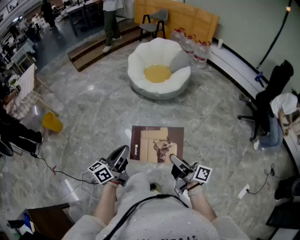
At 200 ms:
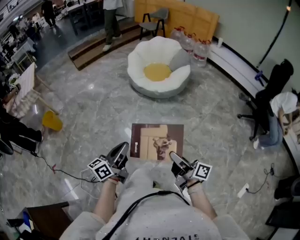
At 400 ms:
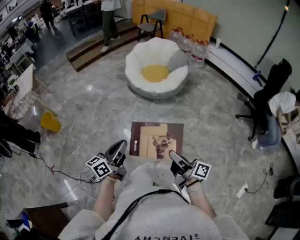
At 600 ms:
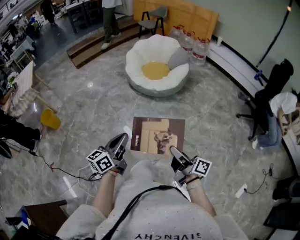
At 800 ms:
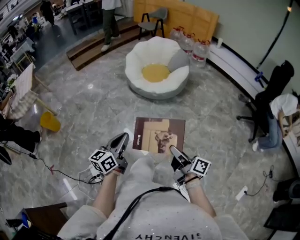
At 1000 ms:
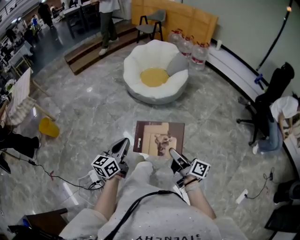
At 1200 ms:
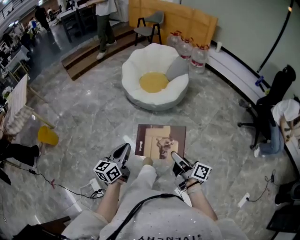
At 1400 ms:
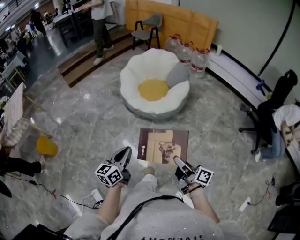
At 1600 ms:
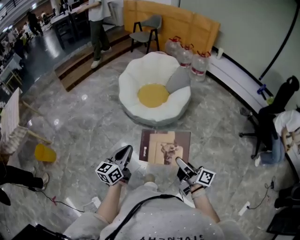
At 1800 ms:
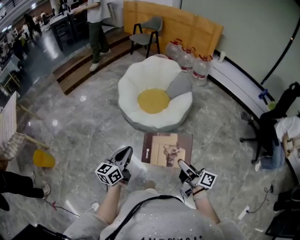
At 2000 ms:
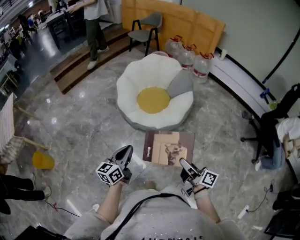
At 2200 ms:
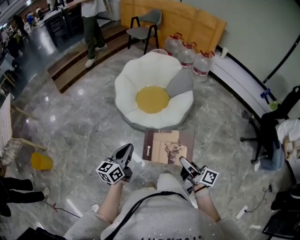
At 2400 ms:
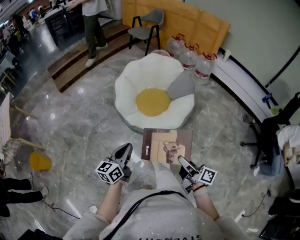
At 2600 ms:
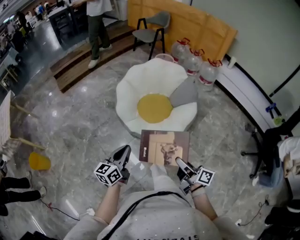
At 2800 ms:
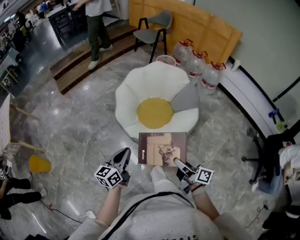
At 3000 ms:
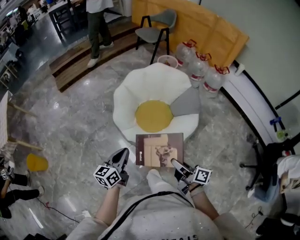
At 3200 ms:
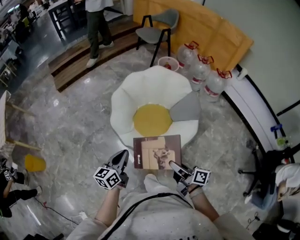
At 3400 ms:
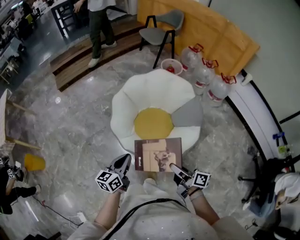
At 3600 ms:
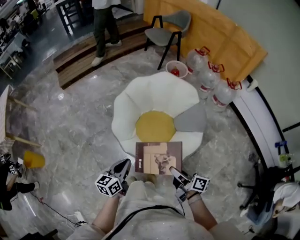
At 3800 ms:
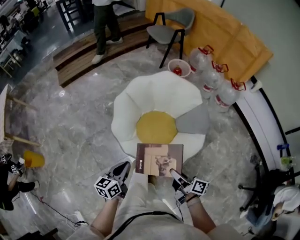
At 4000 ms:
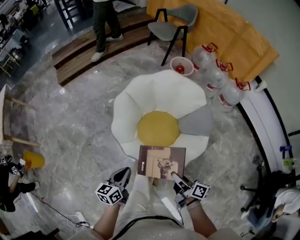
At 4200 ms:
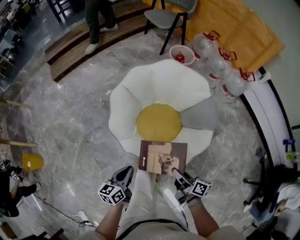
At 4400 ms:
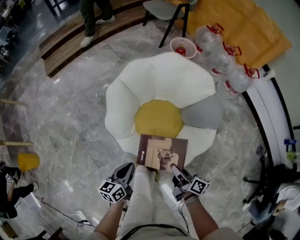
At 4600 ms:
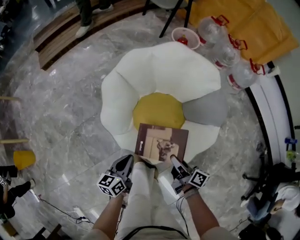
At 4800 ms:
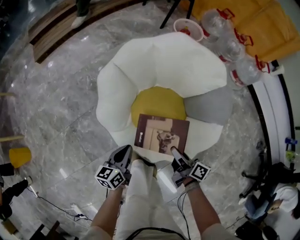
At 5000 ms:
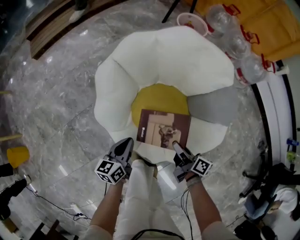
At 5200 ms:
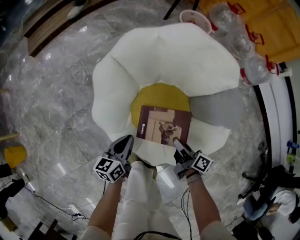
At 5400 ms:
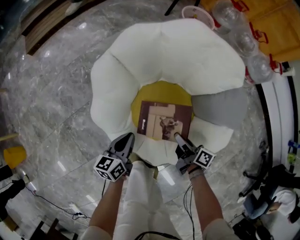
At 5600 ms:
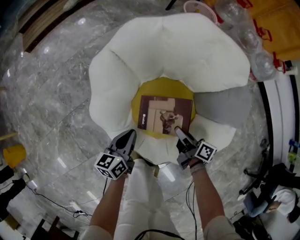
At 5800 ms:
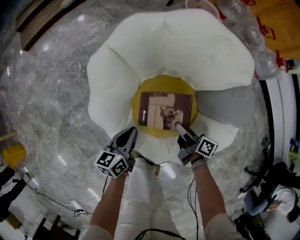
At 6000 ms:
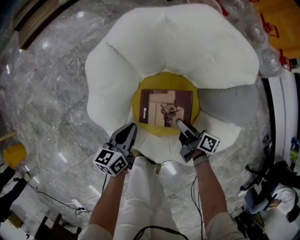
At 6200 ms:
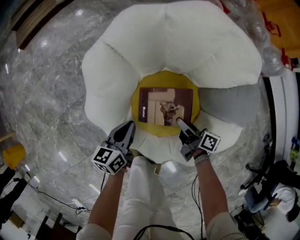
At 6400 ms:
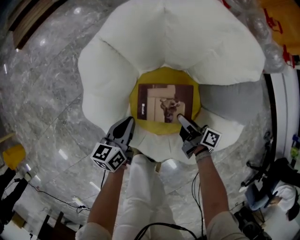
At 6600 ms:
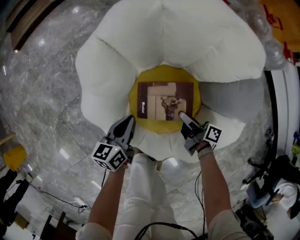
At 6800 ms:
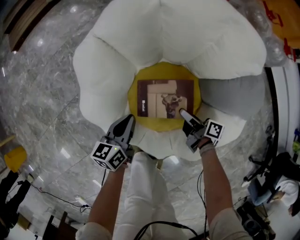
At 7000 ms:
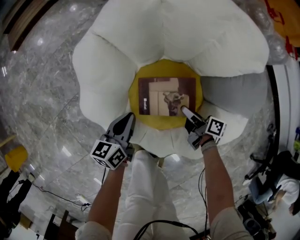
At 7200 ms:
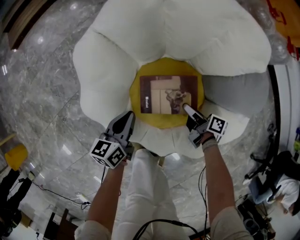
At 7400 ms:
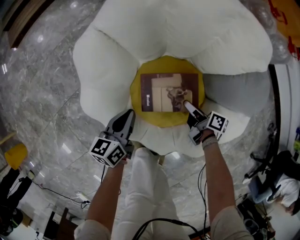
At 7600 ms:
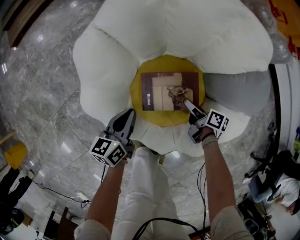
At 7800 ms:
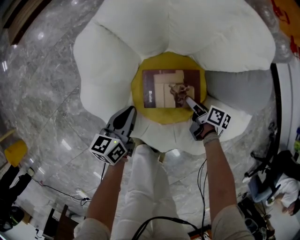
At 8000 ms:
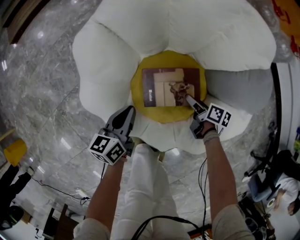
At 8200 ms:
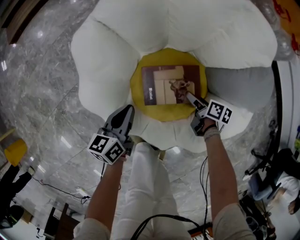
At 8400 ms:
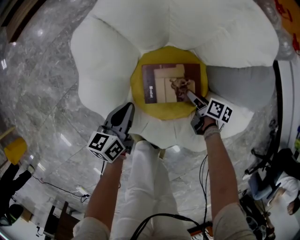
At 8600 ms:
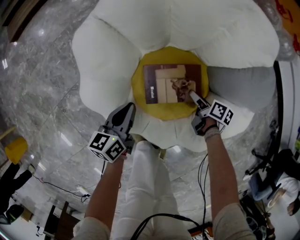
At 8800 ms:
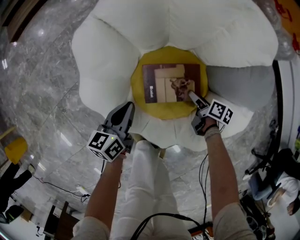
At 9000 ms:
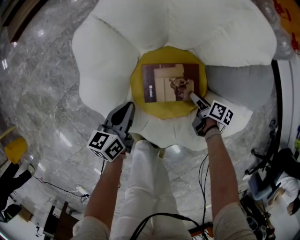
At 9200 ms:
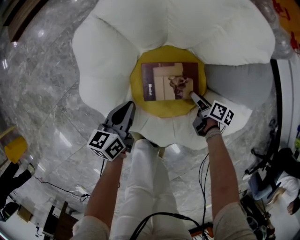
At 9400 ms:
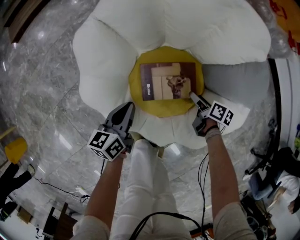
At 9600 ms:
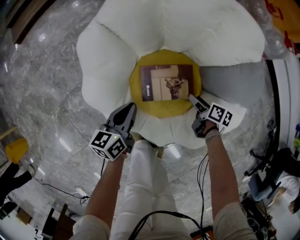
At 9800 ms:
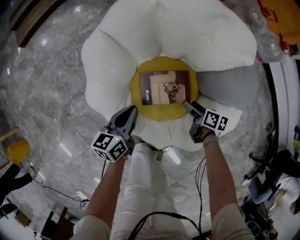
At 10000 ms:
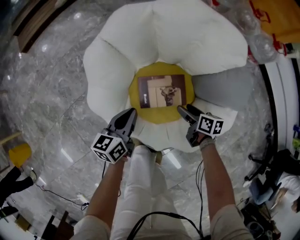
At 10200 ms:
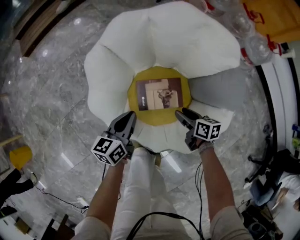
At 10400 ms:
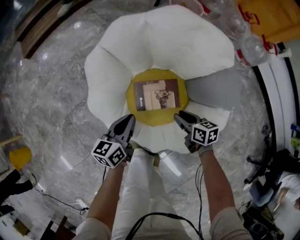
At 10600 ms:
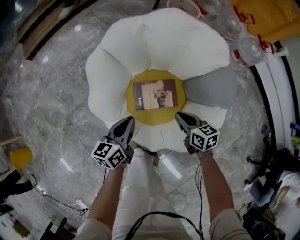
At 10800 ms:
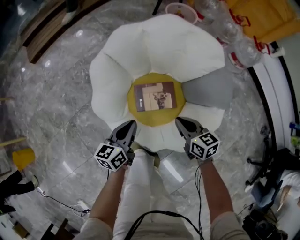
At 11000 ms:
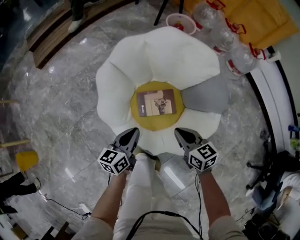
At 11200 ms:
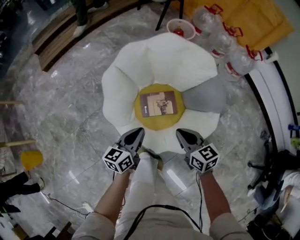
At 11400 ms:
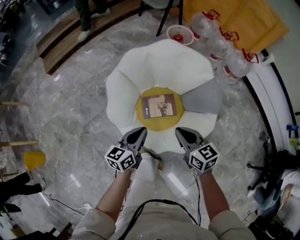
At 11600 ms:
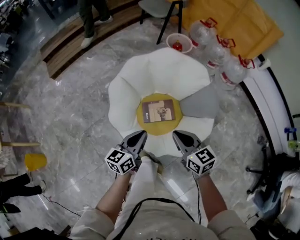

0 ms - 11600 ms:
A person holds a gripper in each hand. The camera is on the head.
0 ms - 1400 ms: The grippers both shift forward by some 25 cm.
1400 ms - 2800 ms: The two grippers go about 35 cm forward.
2800 ms - 4400 ms: The left gripper goes roughly 25 cm downward and forward. The right gripper heads forward and downward, covering about 30 cm.
4400 ms - 5800 ms: Both grippers travel together downward and forward, about 25 cm.
5800 ms - 7200 ms: The right gripper is displaced downward by some 10 cm. The left gripper changes place by some 5 cm.
7200 ms - 8800 ms: The right gripper ends up some 5 cm from where it was, rotates about 20 degrees, and opens.
8800 ms - 10200 ms: Both grippers move upward, roughly 10 cm. The right gripper swivels about 30 degrees.
10200 ms - 11600 ms: The right gripper shifts some 30 cm upward, rotates some 40 degrees, and closes its fingers. Meanwhile the left gripper shifts roughly 20 cm upward and backward.

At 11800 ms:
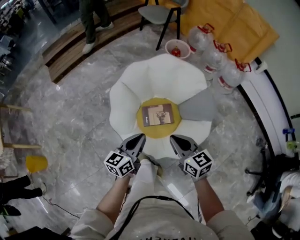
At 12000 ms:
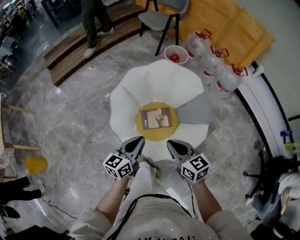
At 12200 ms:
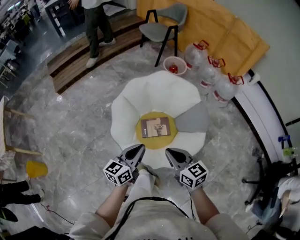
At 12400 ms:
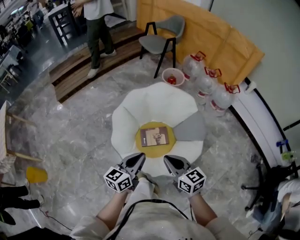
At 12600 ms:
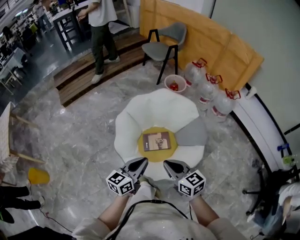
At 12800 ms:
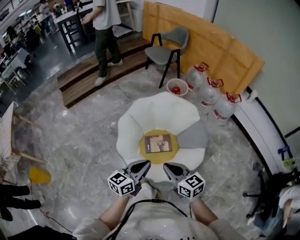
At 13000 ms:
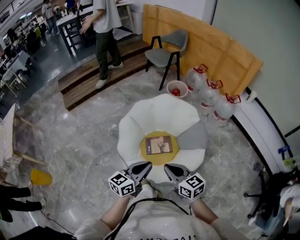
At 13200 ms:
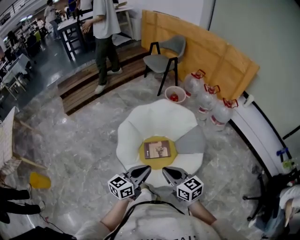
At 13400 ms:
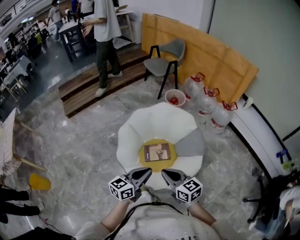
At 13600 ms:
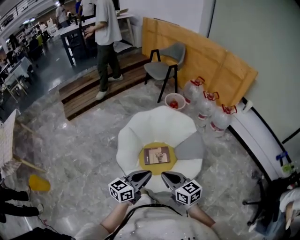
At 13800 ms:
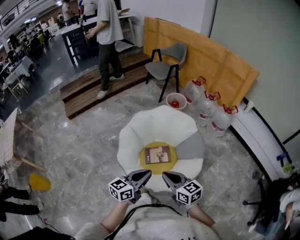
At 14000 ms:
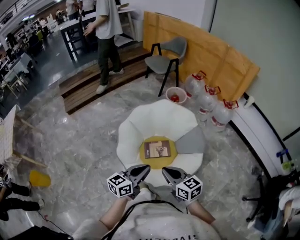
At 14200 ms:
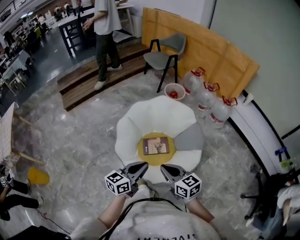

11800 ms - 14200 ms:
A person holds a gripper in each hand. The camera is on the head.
11800 ms - 13000 ms: Both grippers move upward and backward, about 10 cm.
13000 ms - 14200 ms: Both grippers stay put.

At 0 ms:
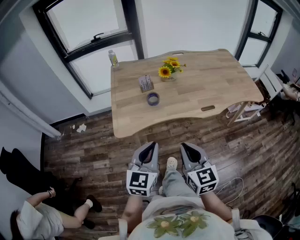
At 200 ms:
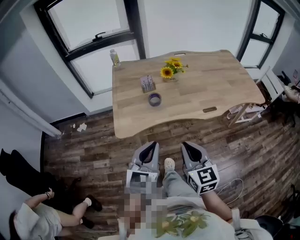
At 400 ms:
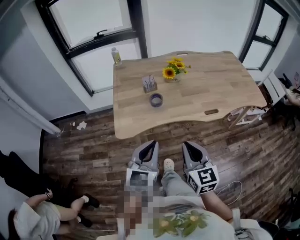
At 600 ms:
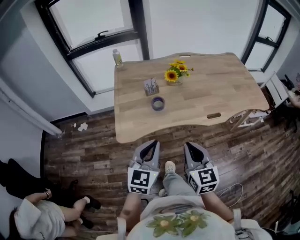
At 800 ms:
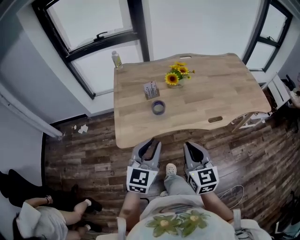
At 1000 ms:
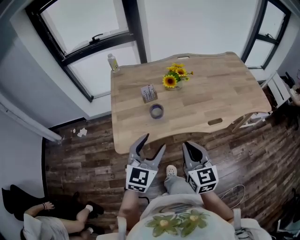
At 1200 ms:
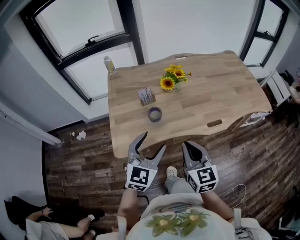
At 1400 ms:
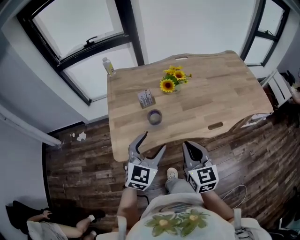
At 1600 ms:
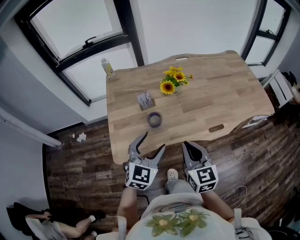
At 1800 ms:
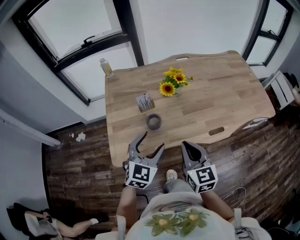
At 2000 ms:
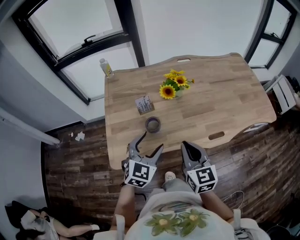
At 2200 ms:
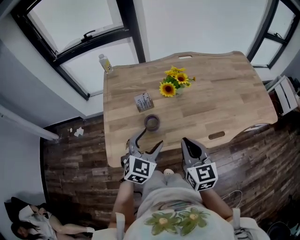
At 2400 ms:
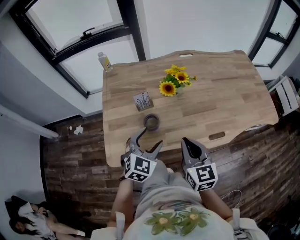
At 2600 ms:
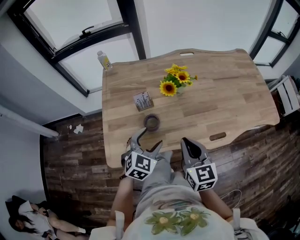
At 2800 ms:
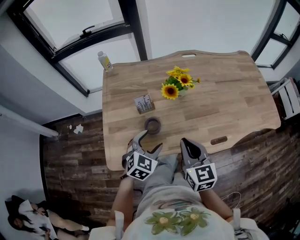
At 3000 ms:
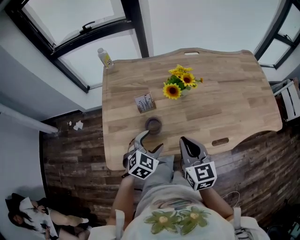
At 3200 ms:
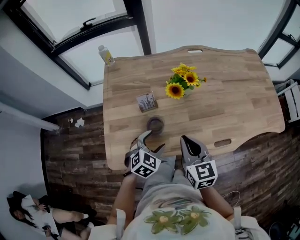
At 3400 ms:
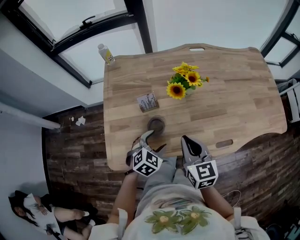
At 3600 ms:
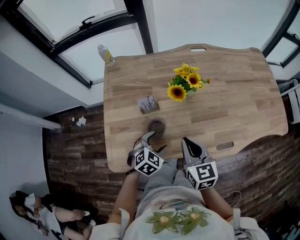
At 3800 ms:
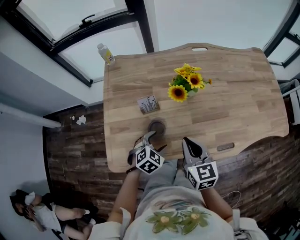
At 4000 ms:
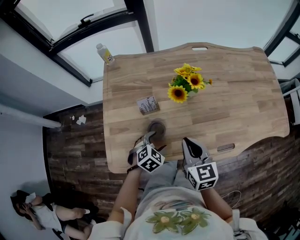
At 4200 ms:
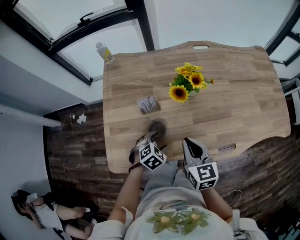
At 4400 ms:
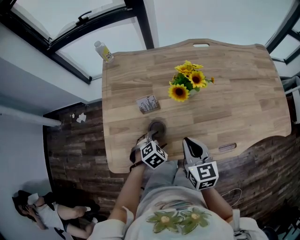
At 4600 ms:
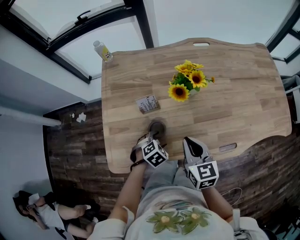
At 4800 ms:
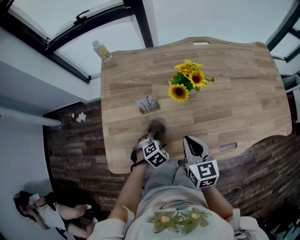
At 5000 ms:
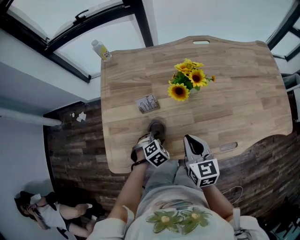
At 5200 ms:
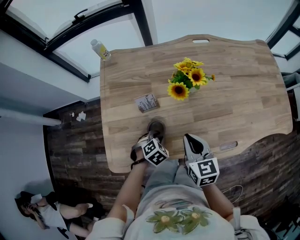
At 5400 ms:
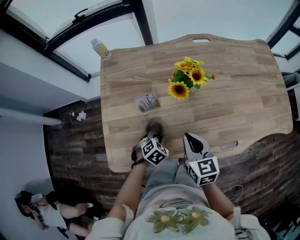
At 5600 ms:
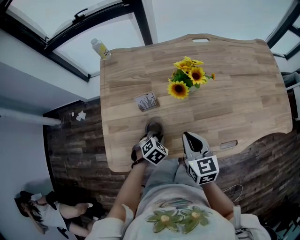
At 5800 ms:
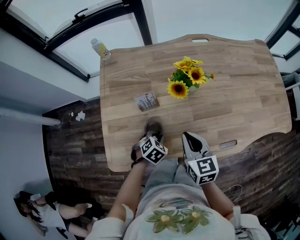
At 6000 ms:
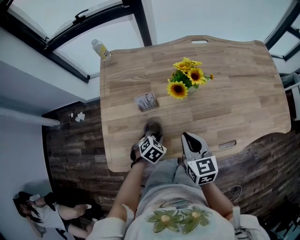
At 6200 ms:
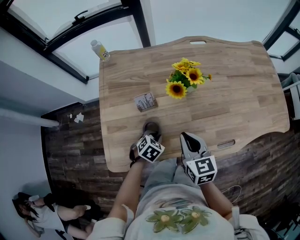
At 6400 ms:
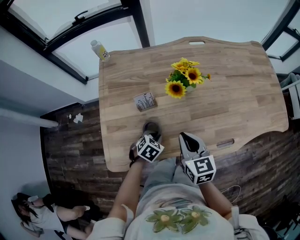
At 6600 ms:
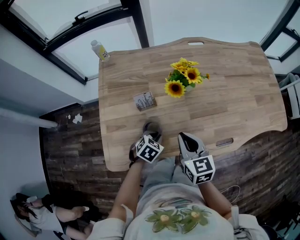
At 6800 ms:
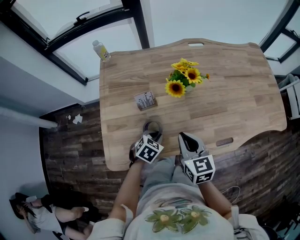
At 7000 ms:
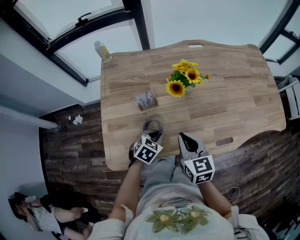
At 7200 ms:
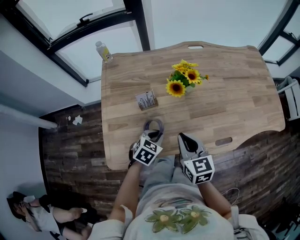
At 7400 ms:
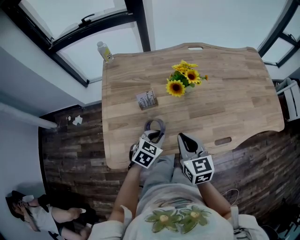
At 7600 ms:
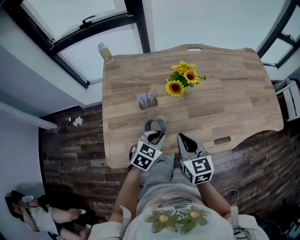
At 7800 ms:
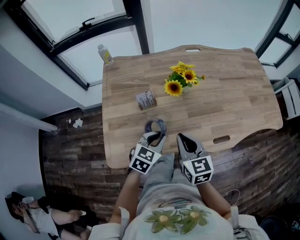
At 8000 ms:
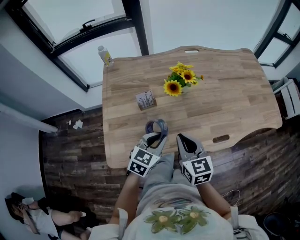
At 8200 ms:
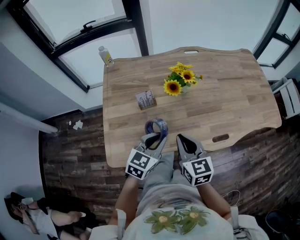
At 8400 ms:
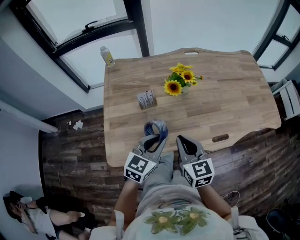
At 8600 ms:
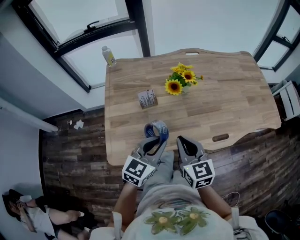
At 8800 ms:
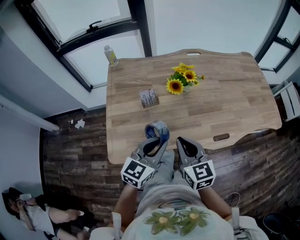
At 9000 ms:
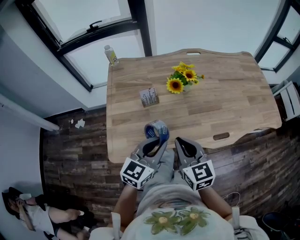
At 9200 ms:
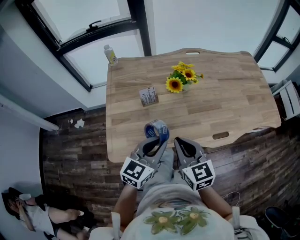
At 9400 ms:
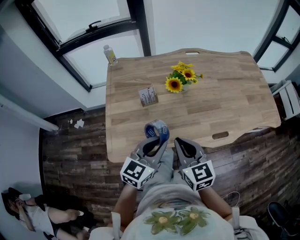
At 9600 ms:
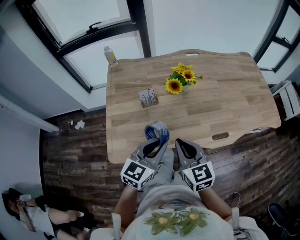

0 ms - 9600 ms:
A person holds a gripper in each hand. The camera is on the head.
0 ms - 1600 ms: The two grippers go approximately 20 cm forward. The left gripper changes its angle by approximately 20 degrees, and opens its fingers.
1600 ms - 3200 ms: The right gripper shifts approximately 15 cm forward. Meanwhile the left gripper heads downward and forward, covering approximately 20 cm, and rotates about 20 degrees.
3200 ms - 4800 ms: The left gripper shifts about 10 cm downward, and rotates some 30 degrees, while the right gripper is displaced downward by approximately 5 cm.
4800 ms - 6400 ms: The left gripper closes.
6400 ms - 8000 ms: The left gripper moves upward, some 15 cm, and tips its fingers upward by about 30 degrees. Meanwhile the right gripper is displaced backward by roughly 5 cm.
8000 ms - 9600 ms: The right gripper heads backward, covering about 5 cm, while the left gripper moves upward and backward, about 10 cm.
